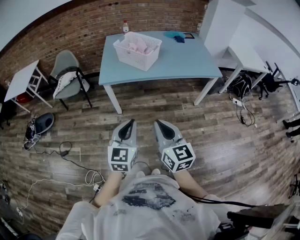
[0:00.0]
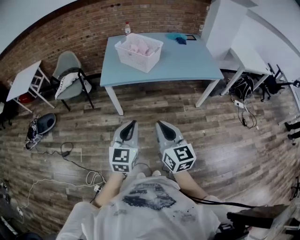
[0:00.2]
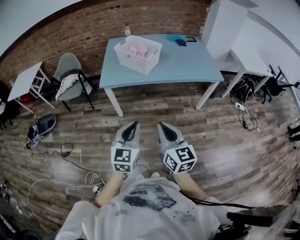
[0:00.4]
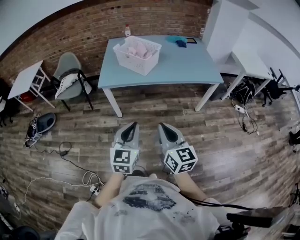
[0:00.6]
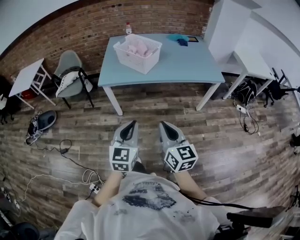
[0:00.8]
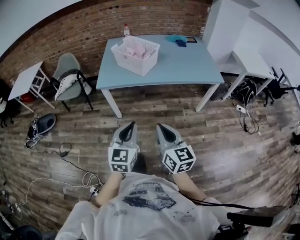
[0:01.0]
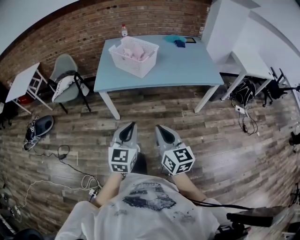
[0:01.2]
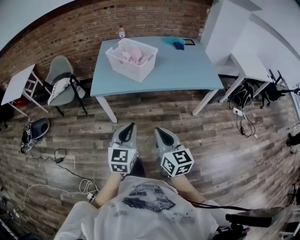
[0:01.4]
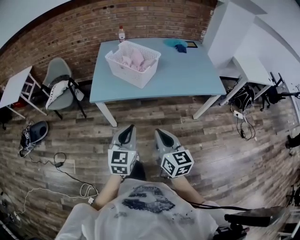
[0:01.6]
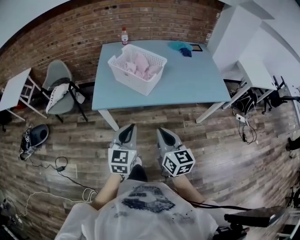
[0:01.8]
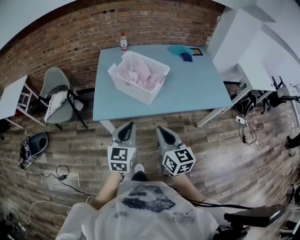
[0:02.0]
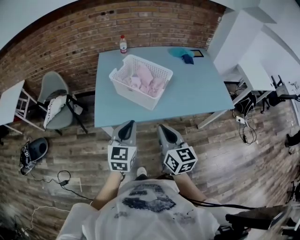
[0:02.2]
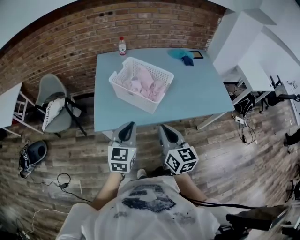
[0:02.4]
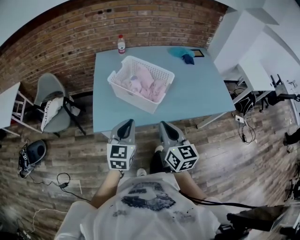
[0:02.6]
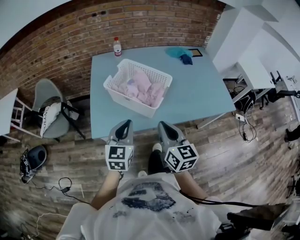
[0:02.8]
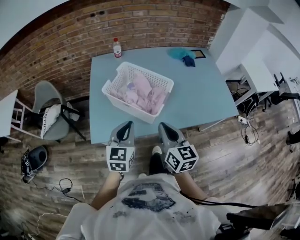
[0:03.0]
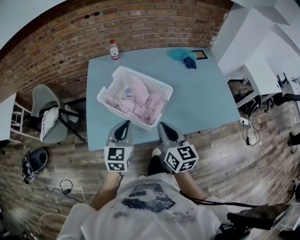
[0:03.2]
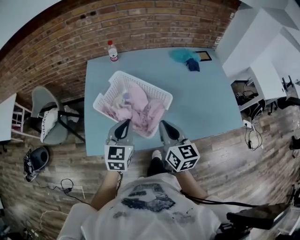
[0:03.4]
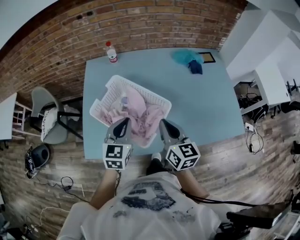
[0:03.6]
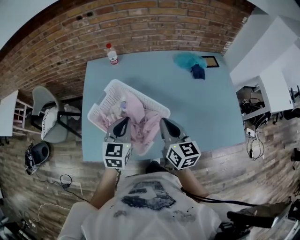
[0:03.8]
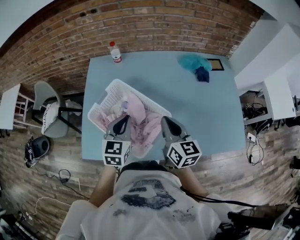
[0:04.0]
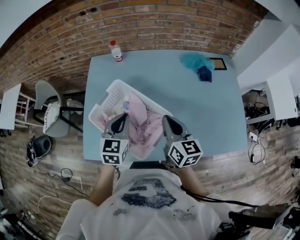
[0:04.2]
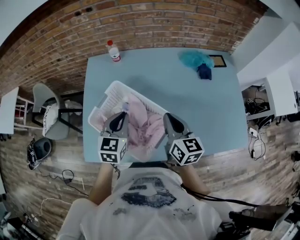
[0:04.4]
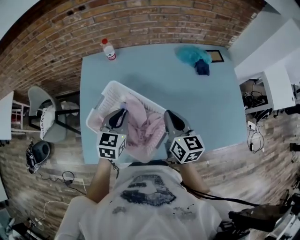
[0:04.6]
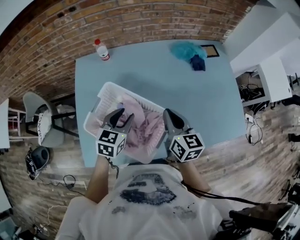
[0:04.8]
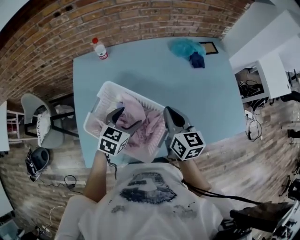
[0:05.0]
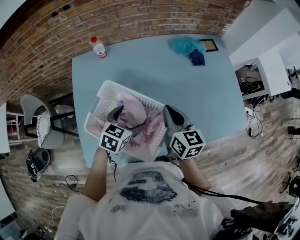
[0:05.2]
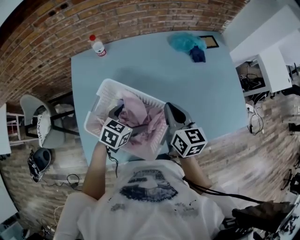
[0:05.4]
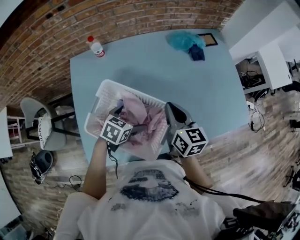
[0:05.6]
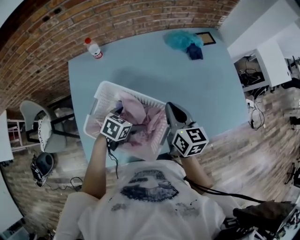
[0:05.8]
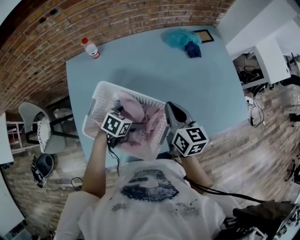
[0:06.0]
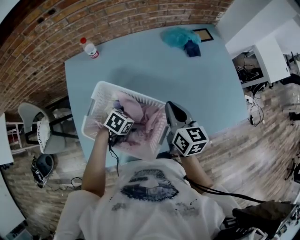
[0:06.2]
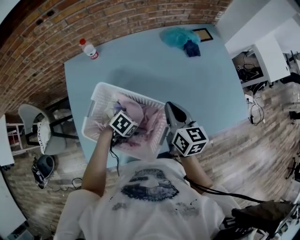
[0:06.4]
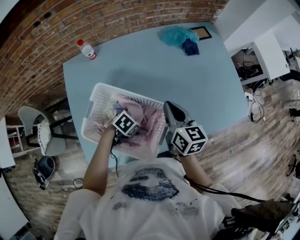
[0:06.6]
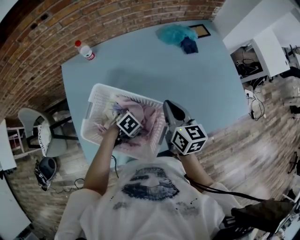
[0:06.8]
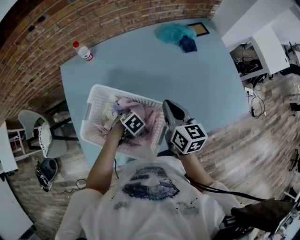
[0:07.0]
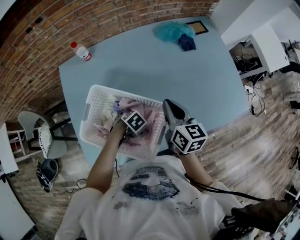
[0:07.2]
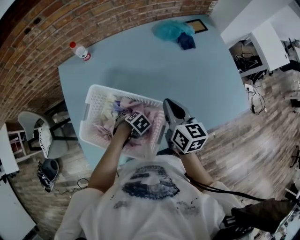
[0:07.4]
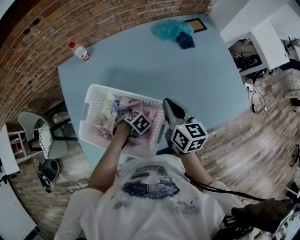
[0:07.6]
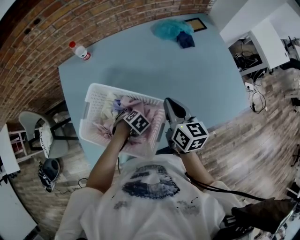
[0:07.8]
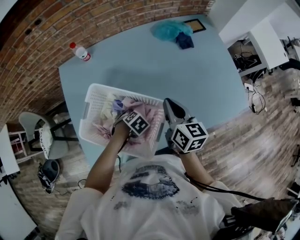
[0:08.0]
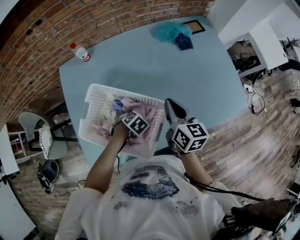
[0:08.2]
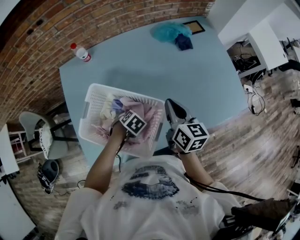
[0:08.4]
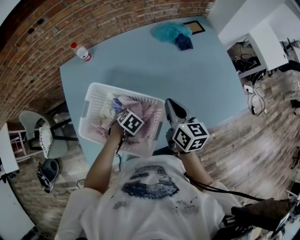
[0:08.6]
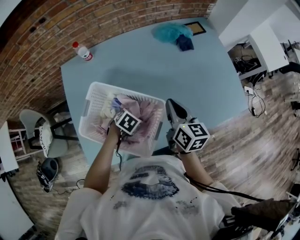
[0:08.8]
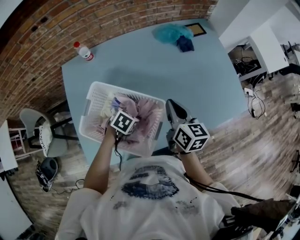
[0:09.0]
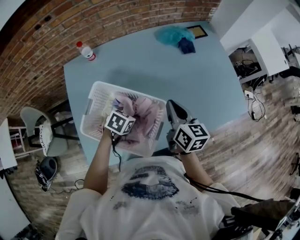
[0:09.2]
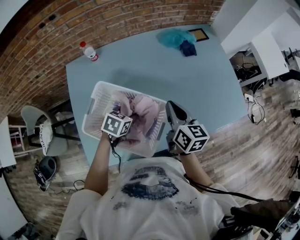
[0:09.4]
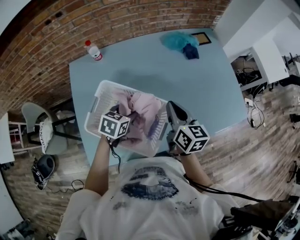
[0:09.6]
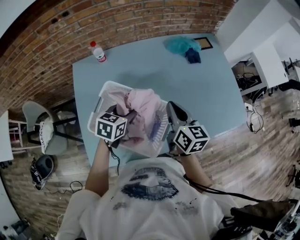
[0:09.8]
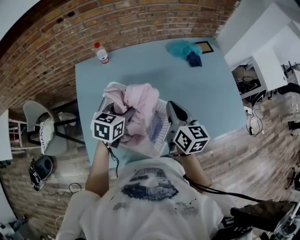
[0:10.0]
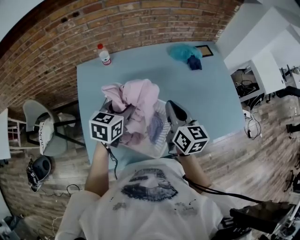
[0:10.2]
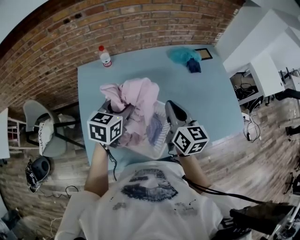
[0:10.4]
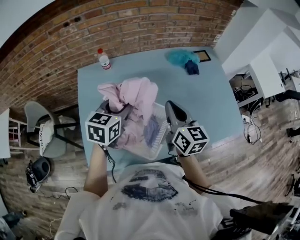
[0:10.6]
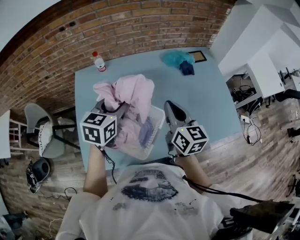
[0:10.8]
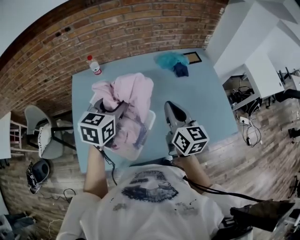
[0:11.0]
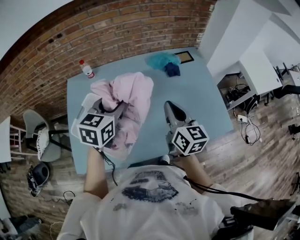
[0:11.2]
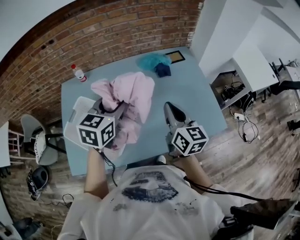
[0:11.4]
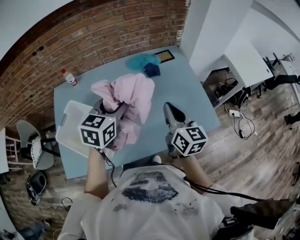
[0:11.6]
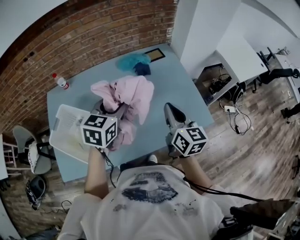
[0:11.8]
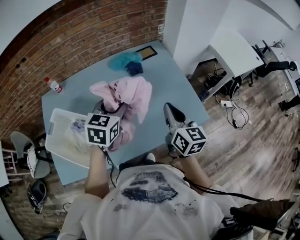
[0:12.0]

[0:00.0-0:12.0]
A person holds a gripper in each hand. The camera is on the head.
0:00.0 to 0:01.6: Both grippers move forward, about 20 cm.
0:01.6 to 0:03.0: The two grippers go some 35 cm forward.
0:03.0 to 0:04.4: The two grippers go some 30 cm forward.
0:04.4 to 0:06.0: The left gripper moves downward, roughly 15 cm, rotates approximately 50 degrees, and opens its fingers.
0:06.0 to 0:07.6: The left gripper goes about 10 cm downward, and rotates about 30 degrees.
0:07.6 to 0:09.0: The left gripper goes some 10 cm upward, turns by about 20 degrees, and closes up.
0:09.0 to 0:10.4: The left gripper heads upward and to the left, covering roughly 25 cm, and tilts its fingers approximately 40 degrees upward; the right gripper travels upward and to the left by about 10 cm.
0:10.4 to 0:12.0: The grippers both shift to the right by approximately 35 cm.

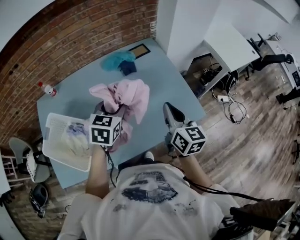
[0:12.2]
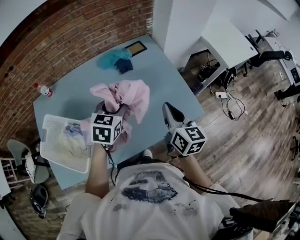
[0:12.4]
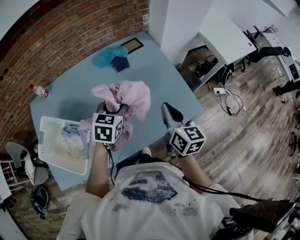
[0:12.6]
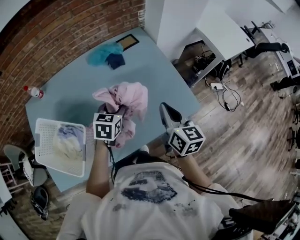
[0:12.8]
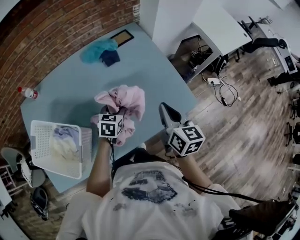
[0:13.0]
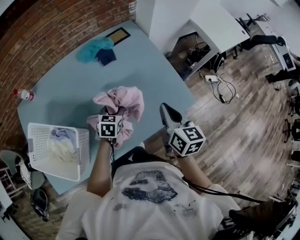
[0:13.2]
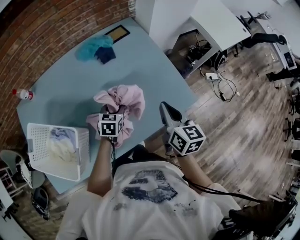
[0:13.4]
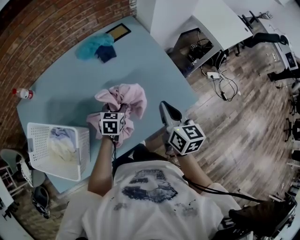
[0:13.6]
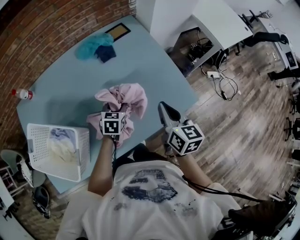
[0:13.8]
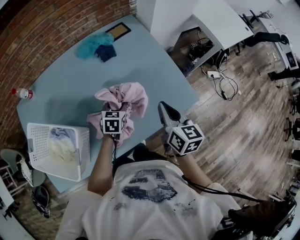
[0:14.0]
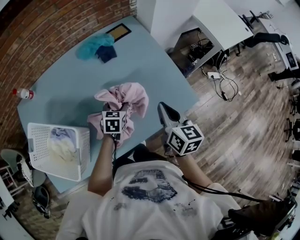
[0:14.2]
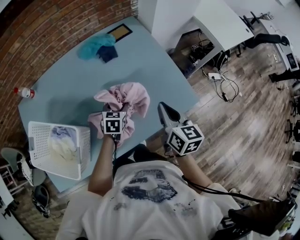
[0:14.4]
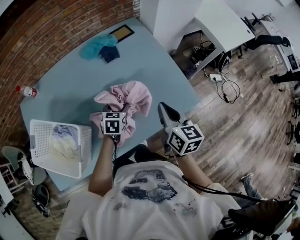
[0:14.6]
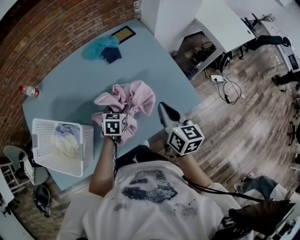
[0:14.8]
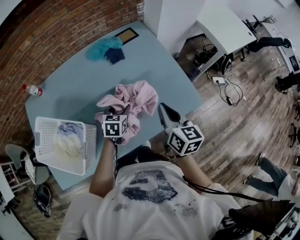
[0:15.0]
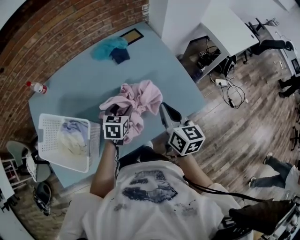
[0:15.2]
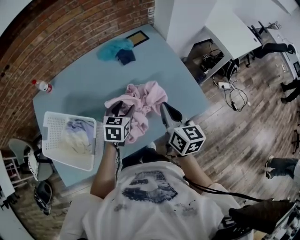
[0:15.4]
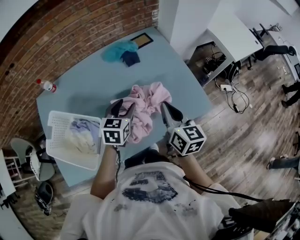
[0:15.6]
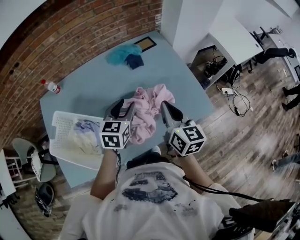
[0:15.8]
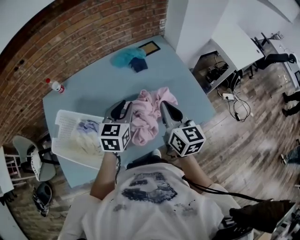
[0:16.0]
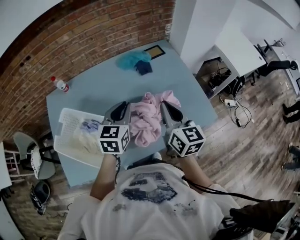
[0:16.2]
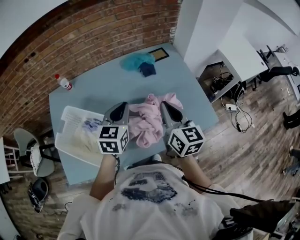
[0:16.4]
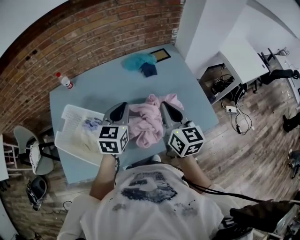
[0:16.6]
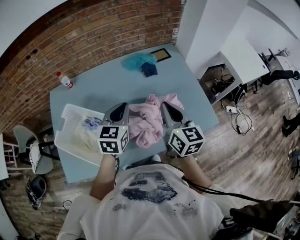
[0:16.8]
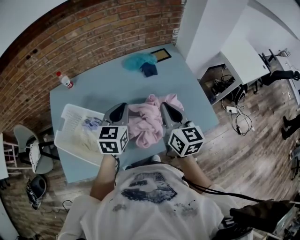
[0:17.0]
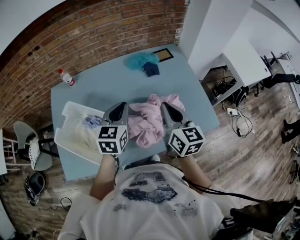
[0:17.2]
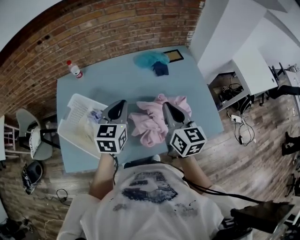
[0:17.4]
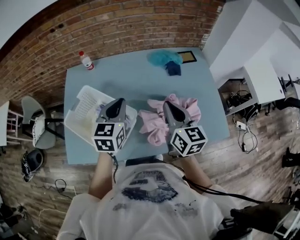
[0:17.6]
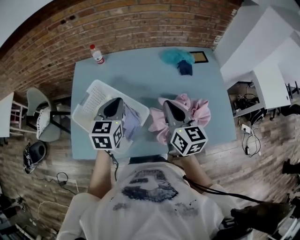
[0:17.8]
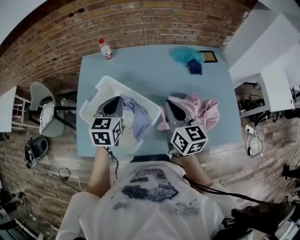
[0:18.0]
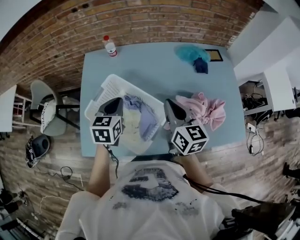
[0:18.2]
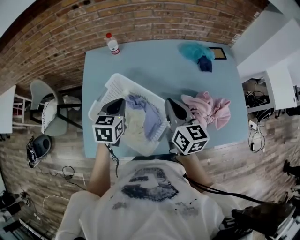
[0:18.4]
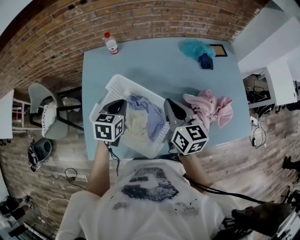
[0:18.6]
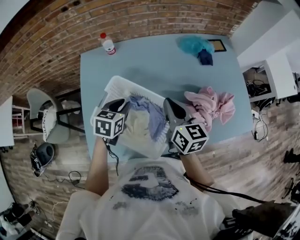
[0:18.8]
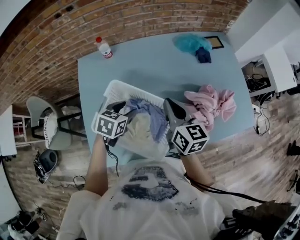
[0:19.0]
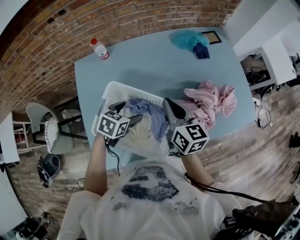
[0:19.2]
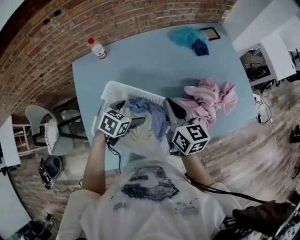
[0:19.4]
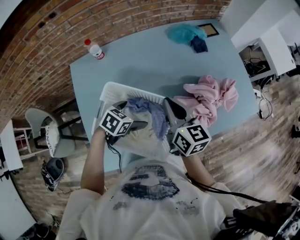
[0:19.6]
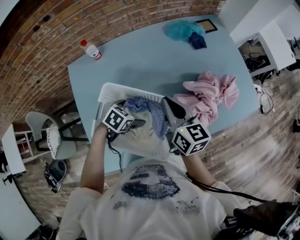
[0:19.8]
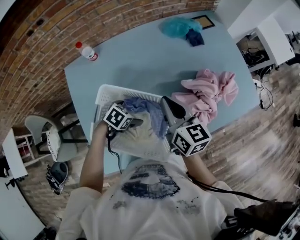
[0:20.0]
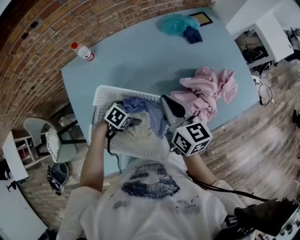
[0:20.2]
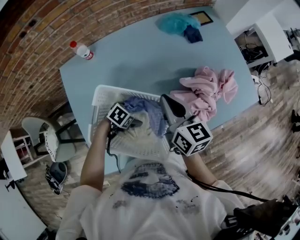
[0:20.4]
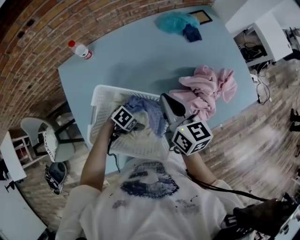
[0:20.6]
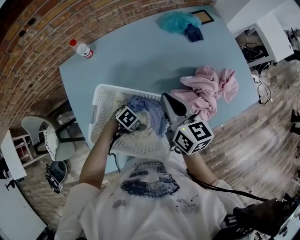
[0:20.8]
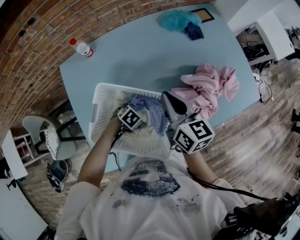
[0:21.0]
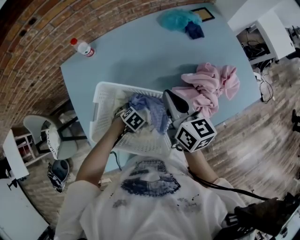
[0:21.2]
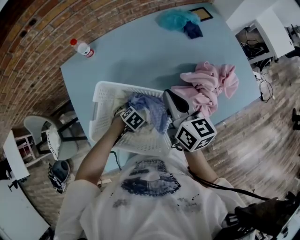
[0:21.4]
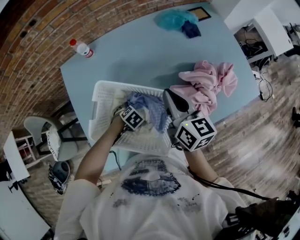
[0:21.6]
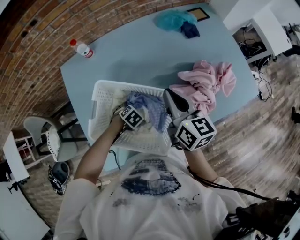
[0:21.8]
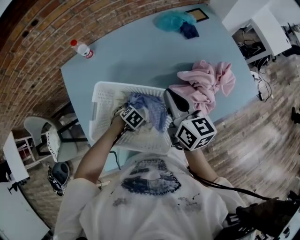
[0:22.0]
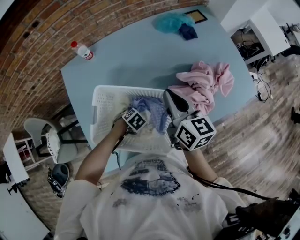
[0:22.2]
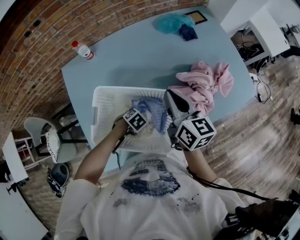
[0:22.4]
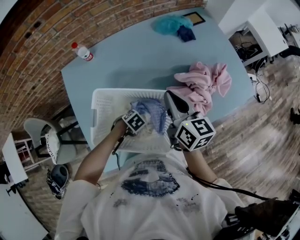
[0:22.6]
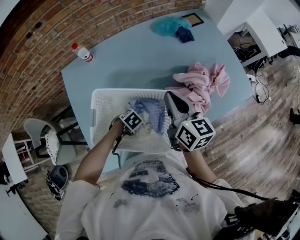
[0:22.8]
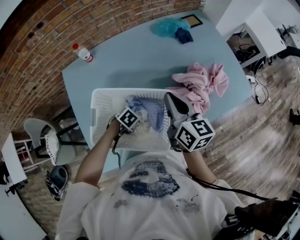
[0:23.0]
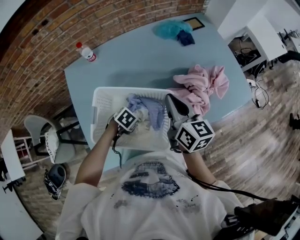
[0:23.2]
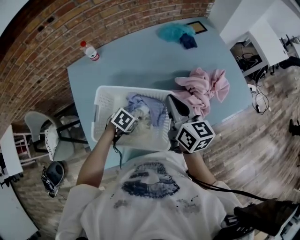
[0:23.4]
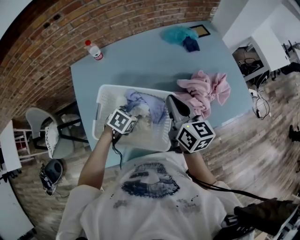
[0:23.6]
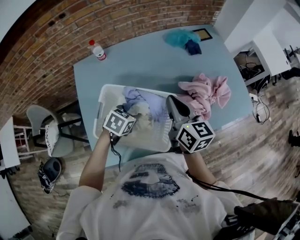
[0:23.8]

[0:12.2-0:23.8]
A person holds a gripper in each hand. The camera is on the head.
0:12.2 to 0:13.6: The right gripper shifts approximately 10 cm downward, while the left gripper moves downward, approximately 25 cm.
0:13.6 to 0:15.0: There are only small adjustments of the grippers.
0:15.0 to 0:16.6: The right gripper is displaced to the left and upward by some 20 cm. The left gripper shifts about 25 cm upward and to the left, changes its angle by roughly 30 degrees, and closes up.
0:16.6 to 0:18.0: The two grippers go some 20 cm to the left. The left gripper changes its angle by some 20 degrees.
0:18.0 to 0:19.4: The left gripper is displaced downward by some 15 cm, rotates about 50 degrees, and opens up; the right gripper changes place by roughly 10 cm.
0:19.4 to 0:21.0: The left gripper goes about 15 cm downward, and changes its angle by some 30 degrees.
0:21.0 to 0:22.4: The left gripper moves approximately 5 cm, and closes its fingers.
0:22.4 to 0:23.8: The left gripper travels upward by roughly 20 cm, and rotates about 30 degrees.
